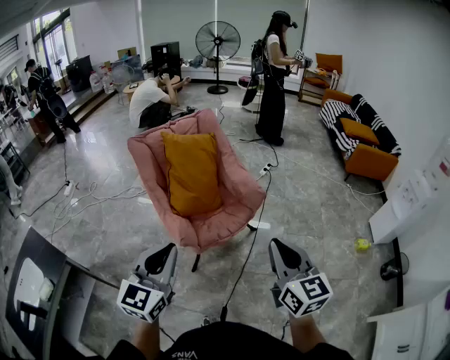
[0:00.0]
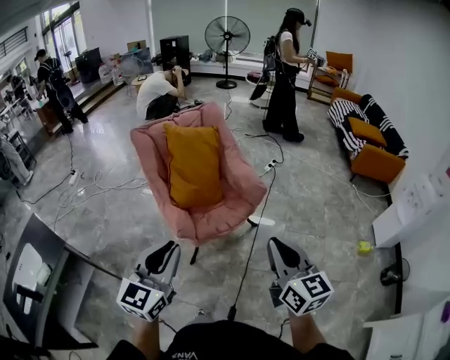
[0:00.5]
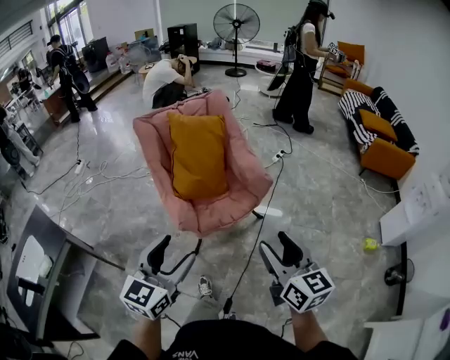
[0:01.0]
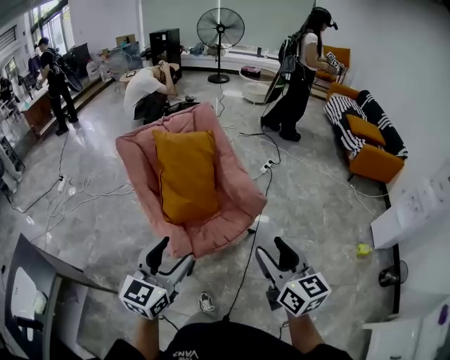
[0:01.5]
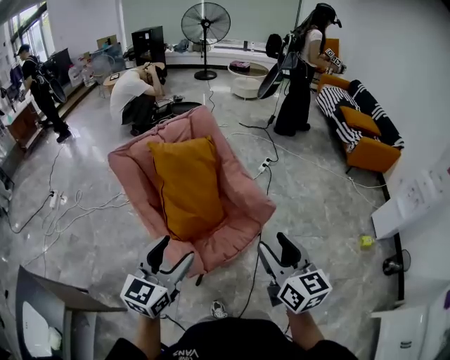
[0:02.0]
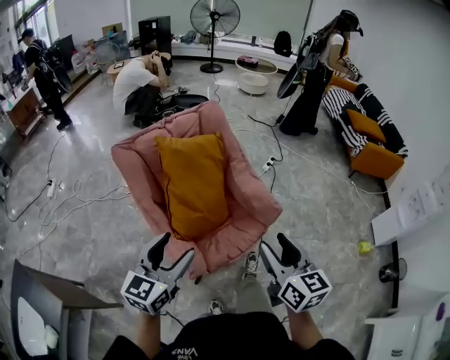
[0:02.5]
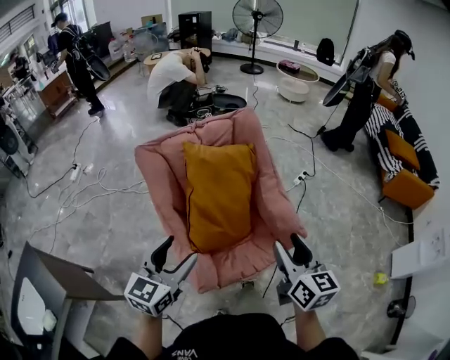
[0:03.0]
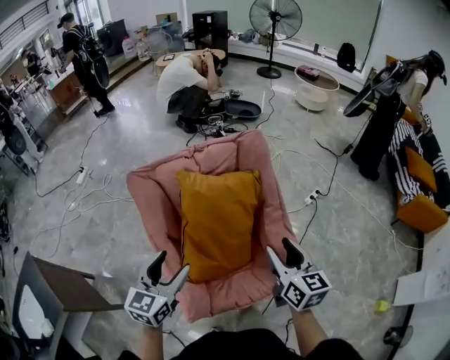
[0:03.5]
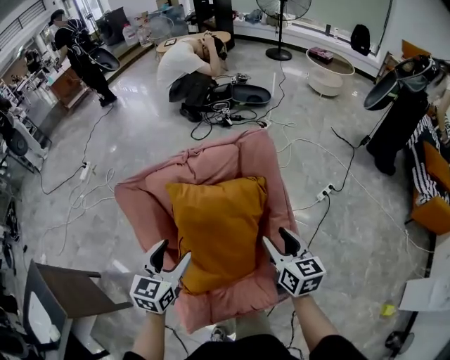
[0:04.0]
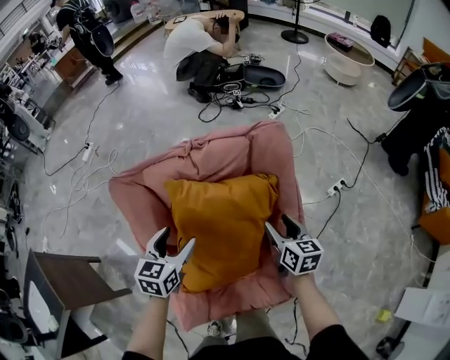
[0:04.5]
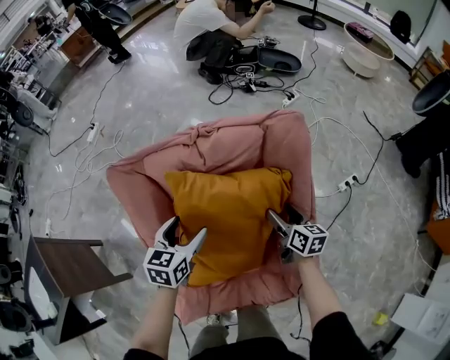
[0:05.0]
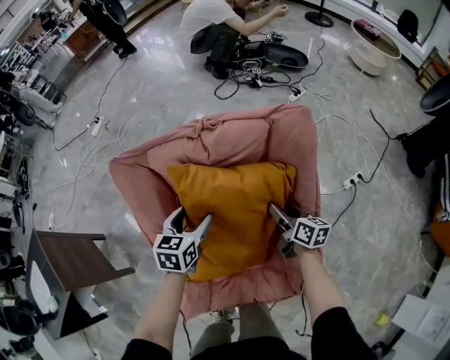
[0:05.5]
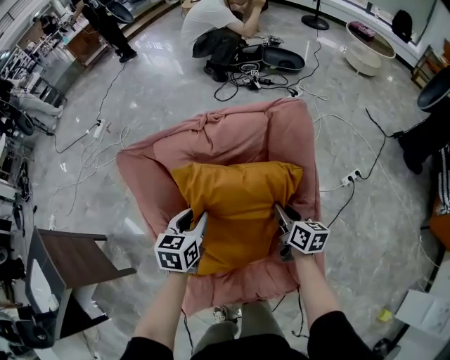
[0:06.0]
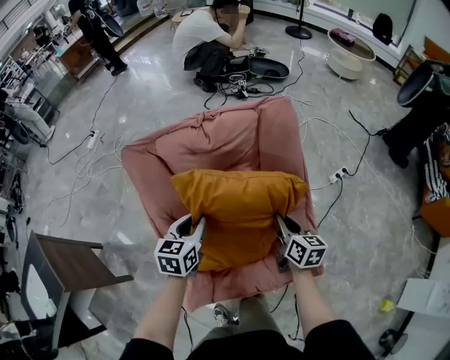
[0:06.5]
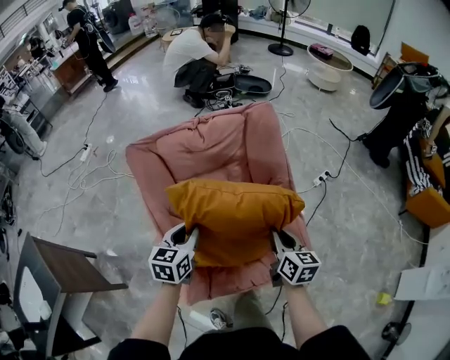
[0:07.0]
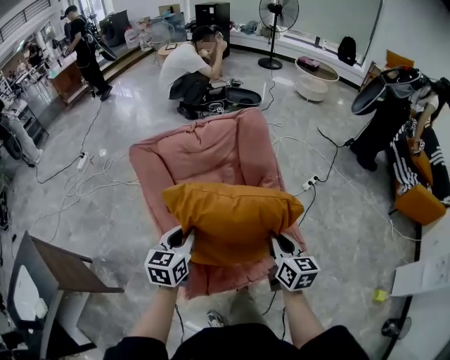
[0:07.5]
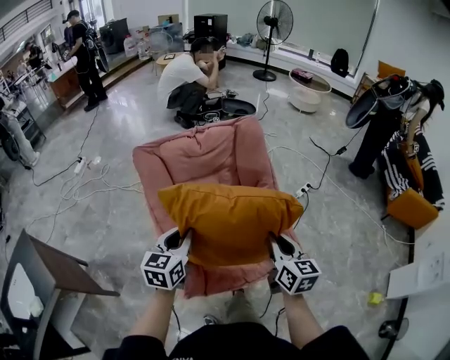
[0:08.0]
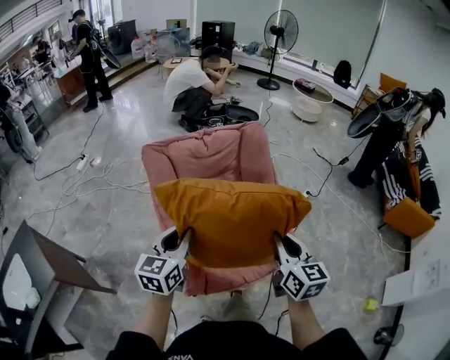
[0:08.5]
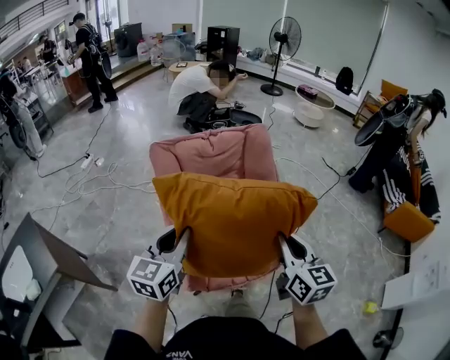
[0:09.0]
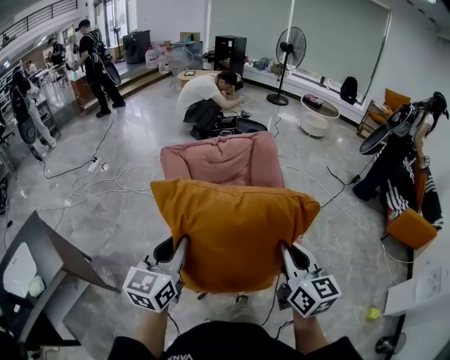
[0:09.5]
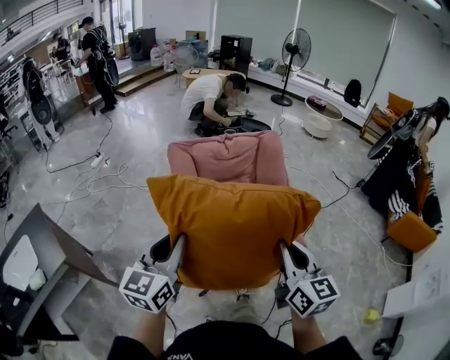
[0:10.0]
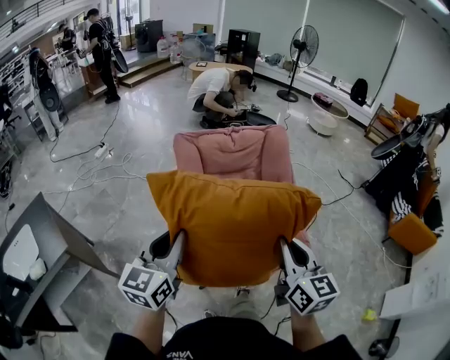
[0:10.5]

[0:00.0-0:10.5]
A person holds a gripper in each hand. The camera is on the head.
0:00.0 to 0:02.0: Both grippers move forward, about 20 cm. The right gripper opens its fingers. The left gripper opens its fingers.
0:02.0 to 0:04.0: The grippers both shift forward by some 40 cm. The left gripper changes its angle by about 30 degrees; the right gripper rotates approximately 20 degrees.
0:04.0 to 0:06.5: Both grippers travel together downward, approximately 10 cm. The left gripper closes its fingers, while the right gripper closes its fingers.
0:06.5 to 0:08.5: The two grippers go approximately 30 cm backward and upward. The right gripper turns by approximately 30 degrees, while the left gripper rotates about 20 degrees.
0:08.5 to 0:10.5: Both grippers move backward, to the left and upward, about 15 cm.

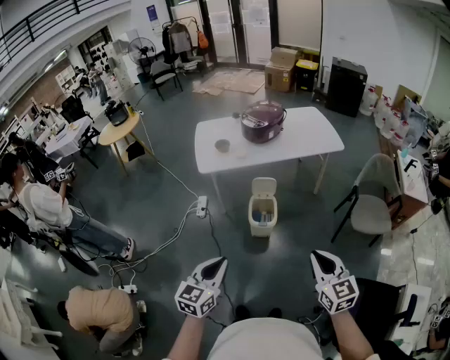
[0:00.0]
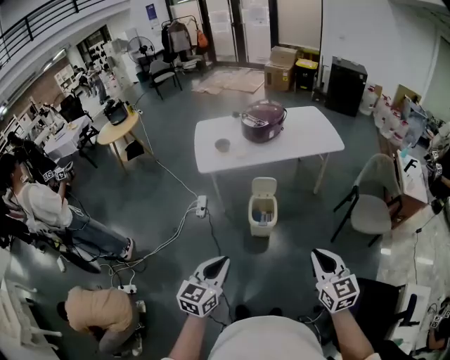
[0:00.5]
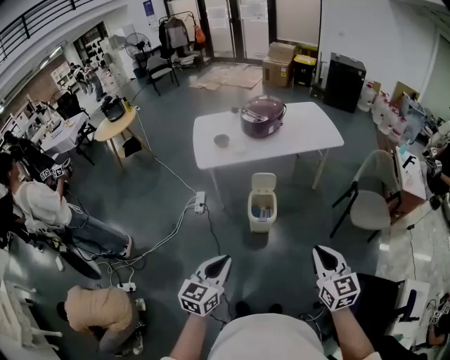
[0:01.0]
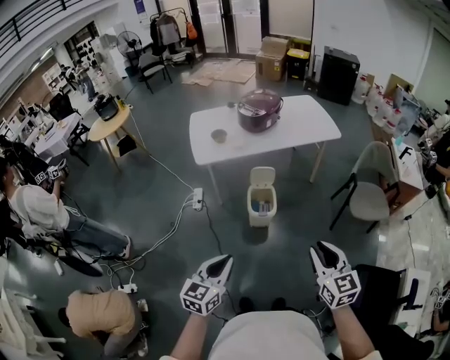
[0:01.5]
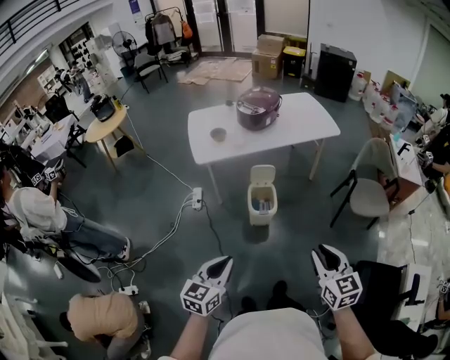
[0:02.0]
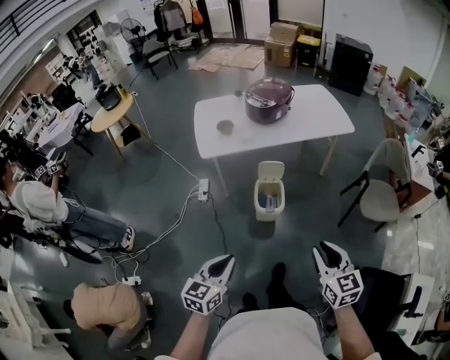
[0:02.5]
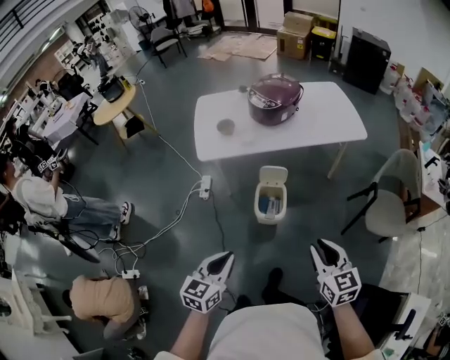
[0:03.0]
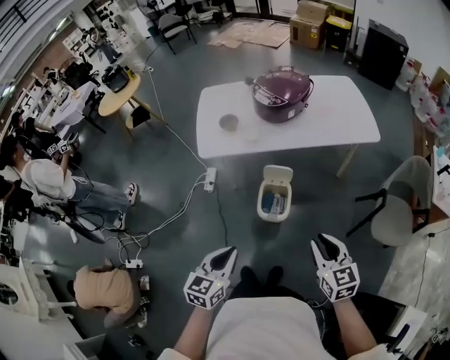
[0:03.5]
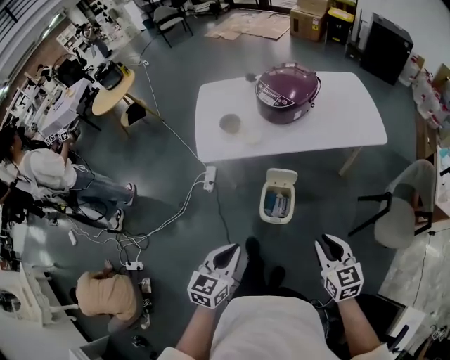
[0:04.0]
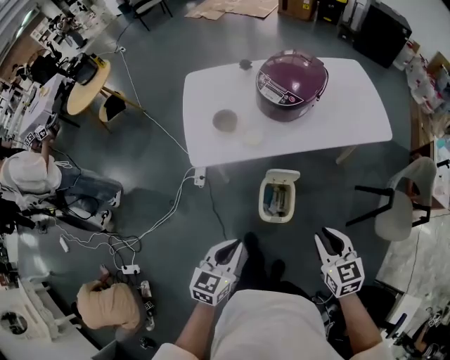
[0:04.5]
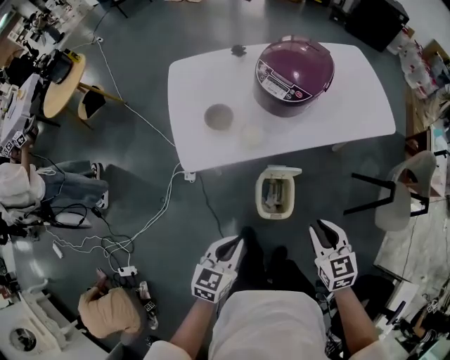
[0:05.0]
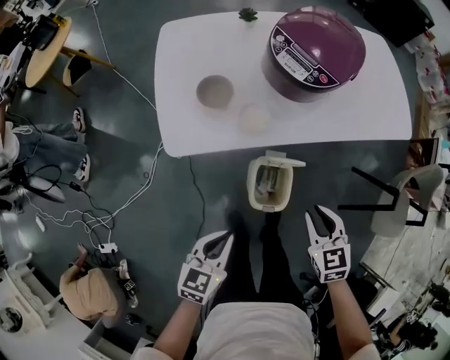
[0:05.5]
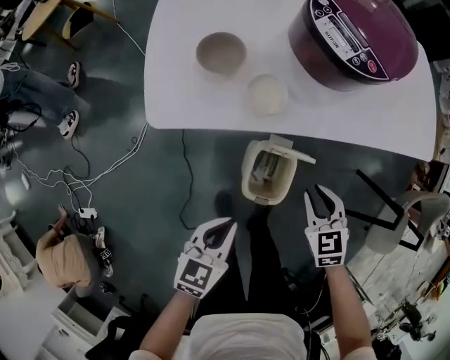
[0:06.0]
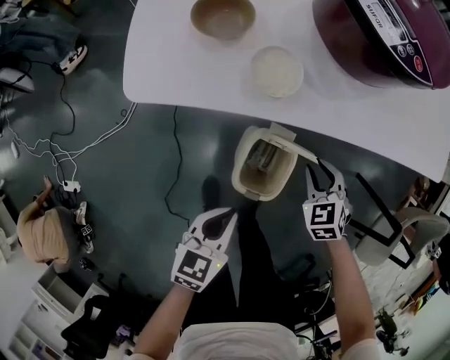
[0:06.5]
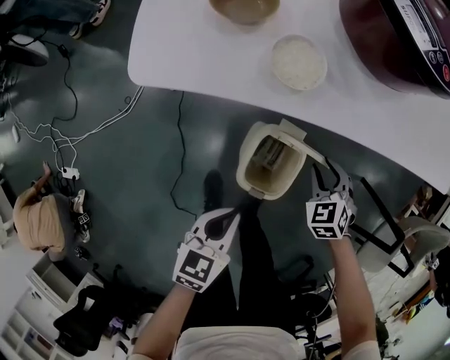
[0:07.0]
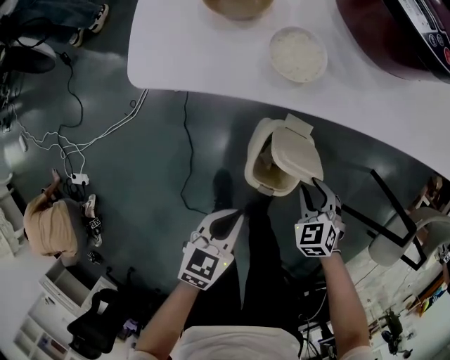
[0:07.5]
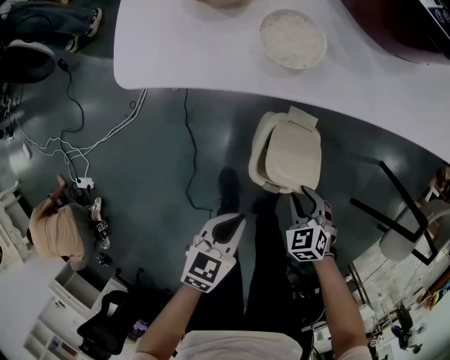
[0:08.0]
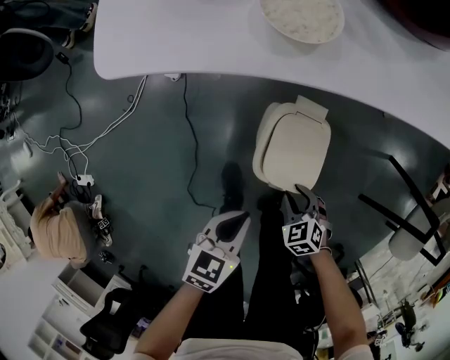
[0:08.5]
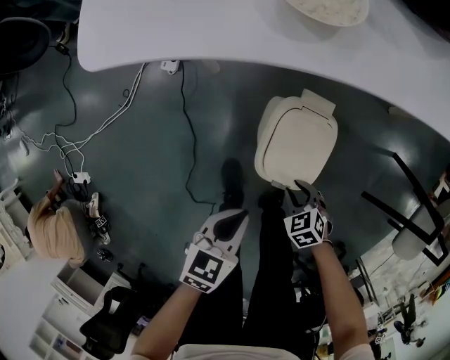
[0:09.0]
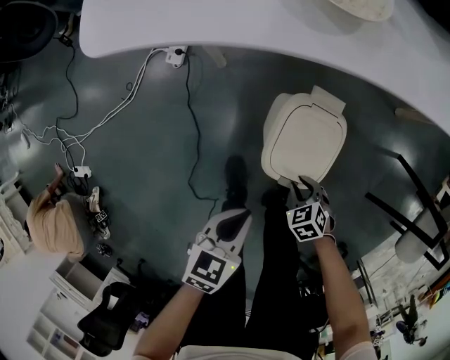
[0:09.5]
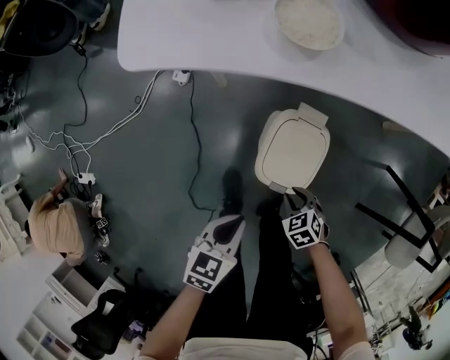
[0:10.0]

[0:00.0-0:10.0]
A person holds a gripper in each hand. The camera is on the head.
0:00.0 to 0:02.0: The right gripper goes roughly 5 cm to the left, and opens up, while the left gripper moves some 5 cm.
0:02.0 to 0:04.0: Both grippers travel together forward, about 30 cm.
0:04.0 to 0:06.0: The right gripper travels downward, forward and to the left by approximately 40 cm, and changes its angle by about 30 degrees. Meanwhile the left gripper goes roughly 35 cm downward and forward.
0:06.0 to 0:08.0: The right gripper shifts some 25 cm downward and backward, and turns by about 20 degrees. The left gripper is displaced downward and backward by roughly 15 cm.
0:08.0 to 0:10.0: The right gripper is displaced downward and backward by roughly 10 cm.

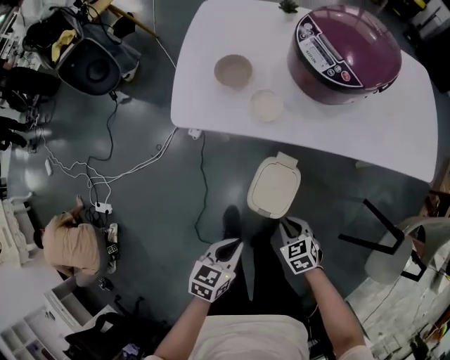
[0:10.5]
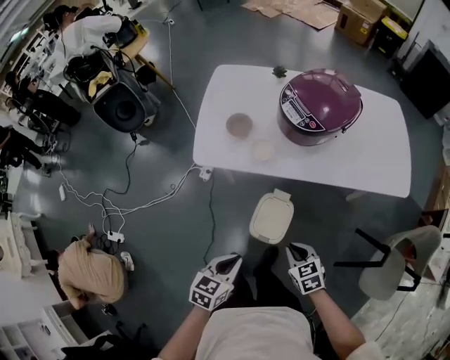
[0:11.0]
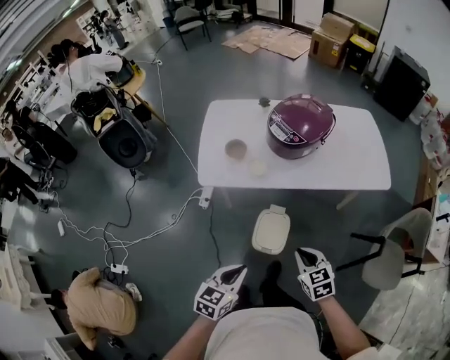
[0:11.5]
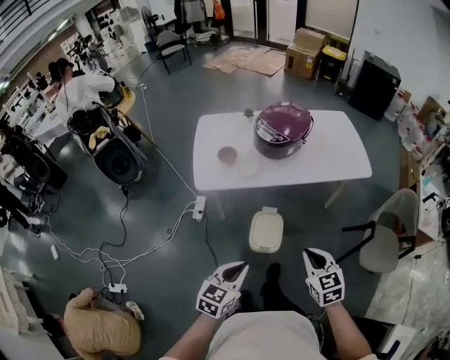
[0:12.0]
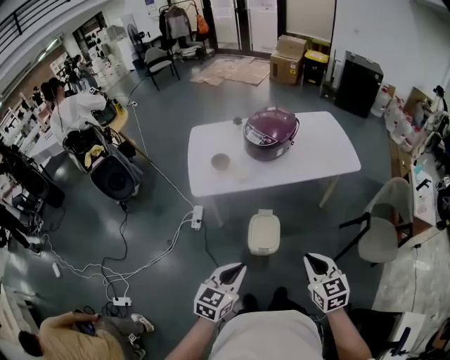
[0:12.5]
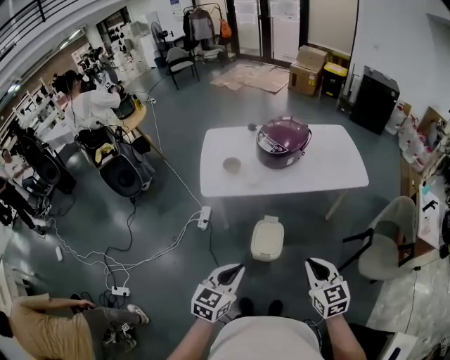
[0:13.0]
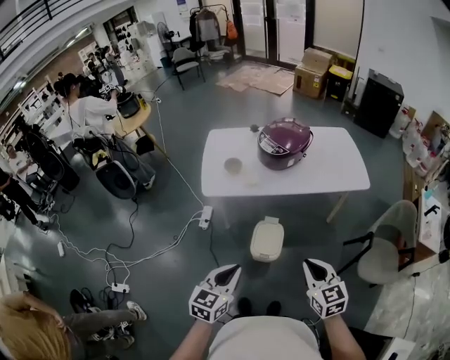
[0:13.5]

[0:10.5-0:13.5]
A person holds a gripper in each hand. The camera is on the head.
0:10.5 to 0:12.0: Both grippers move upward, some 35 cm. The left gripper rotates roughly 30 degrees; the right gripper turns by some 40 degrees.
0:12.0 to 0:13.5: The left gripper heads upward and backward, covering some 10 cm. Meanwhile the right gripper shifts about 10 cm backward and upward.

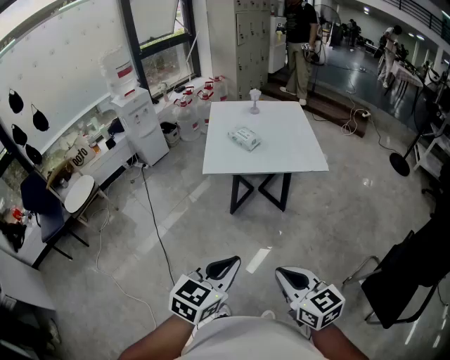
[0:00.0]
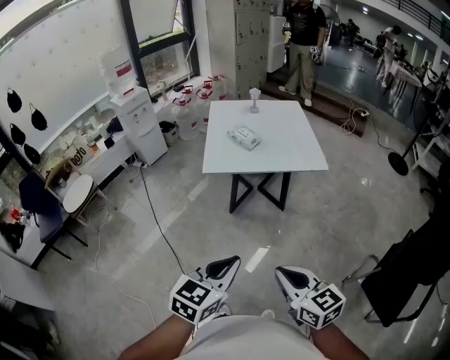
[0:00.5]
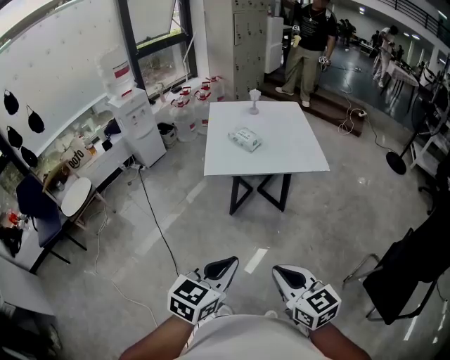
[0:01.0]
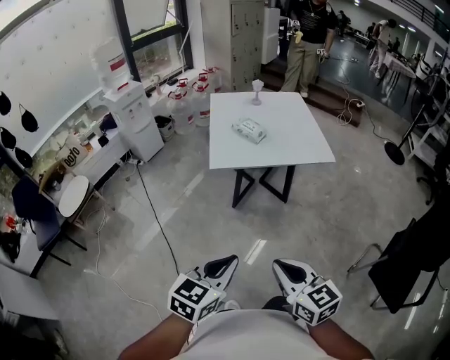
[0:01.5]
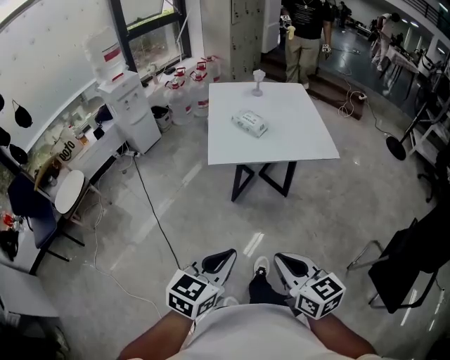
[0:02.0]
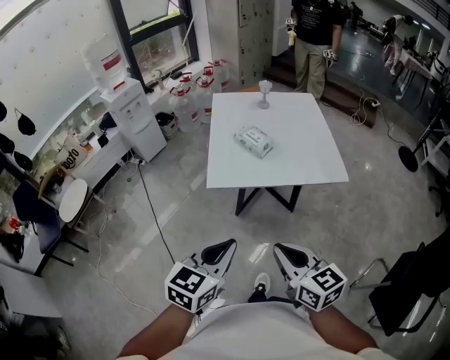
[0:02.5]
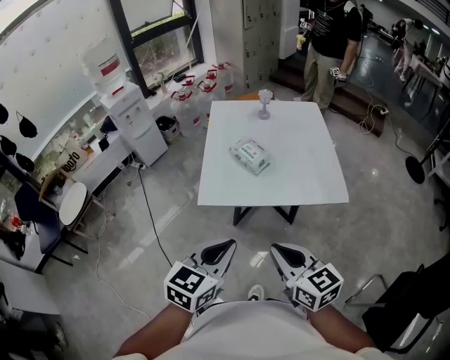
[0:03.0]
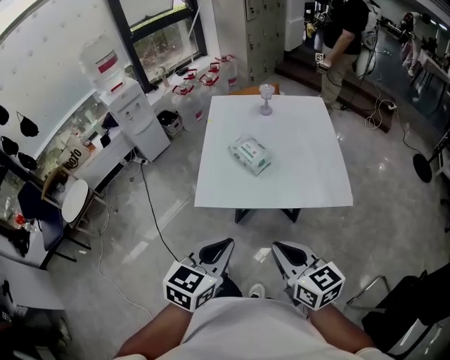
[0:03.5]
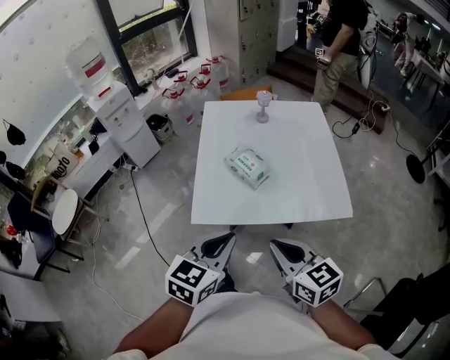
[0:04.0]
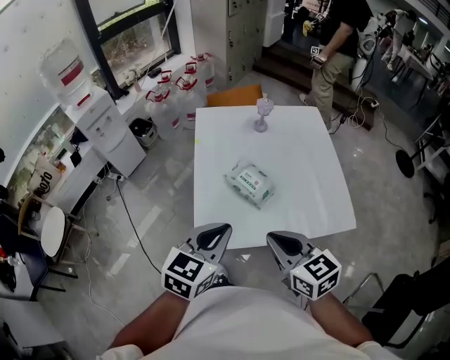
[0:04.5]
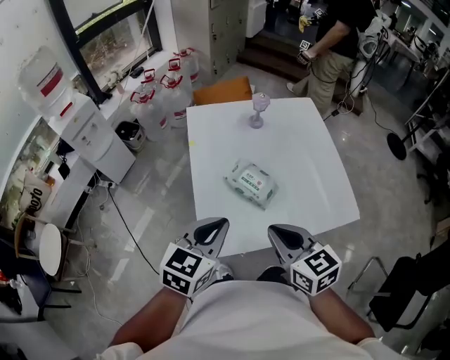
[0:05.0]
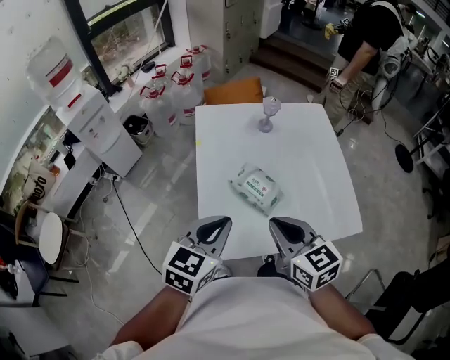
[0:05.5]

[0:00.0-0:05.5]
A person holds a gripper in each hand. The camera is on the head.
0:00.0 to 0:02.0: Both grippers travel together to the left and forward, roughly 10 cm.
0:02.0 to 0:03.5: The grippers both shift forward by about 30 cm.
0:03.5 to 0:05.5: The right gripper shifts roughly 30 cm forward and to the left; the left gripper is displaced forward by roughly 30 cm.
